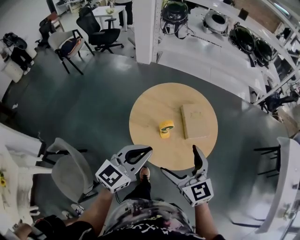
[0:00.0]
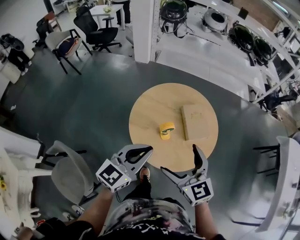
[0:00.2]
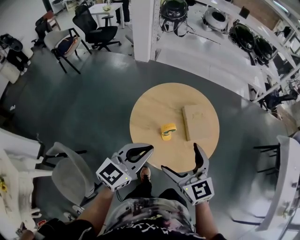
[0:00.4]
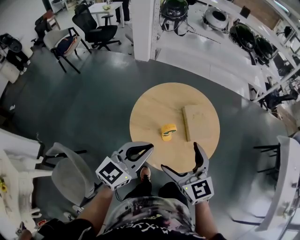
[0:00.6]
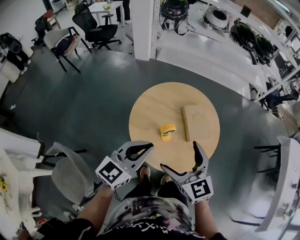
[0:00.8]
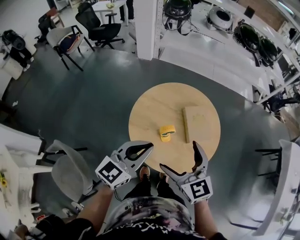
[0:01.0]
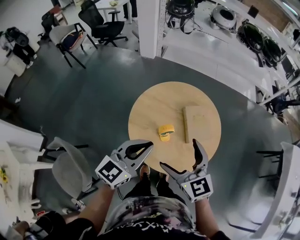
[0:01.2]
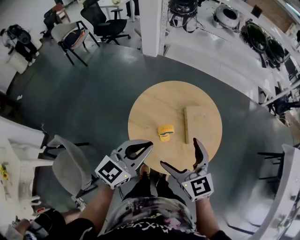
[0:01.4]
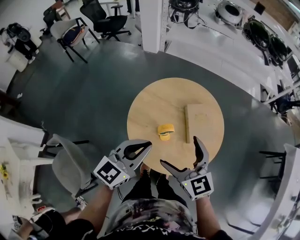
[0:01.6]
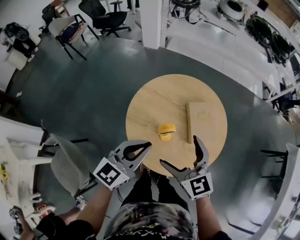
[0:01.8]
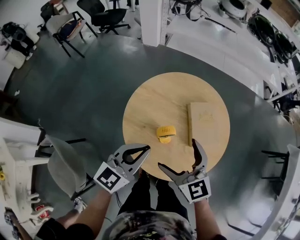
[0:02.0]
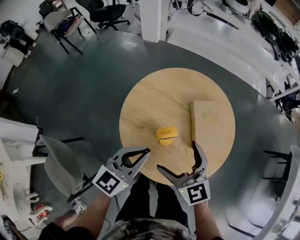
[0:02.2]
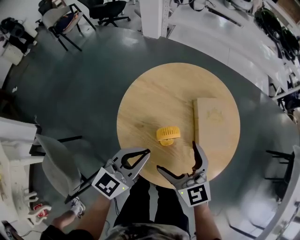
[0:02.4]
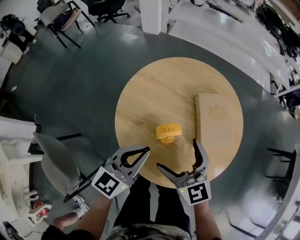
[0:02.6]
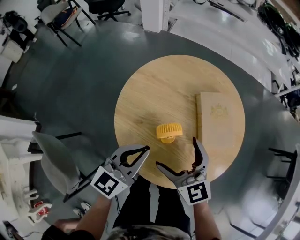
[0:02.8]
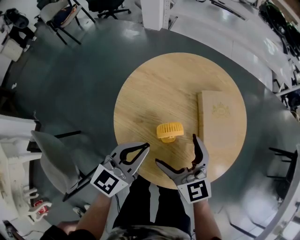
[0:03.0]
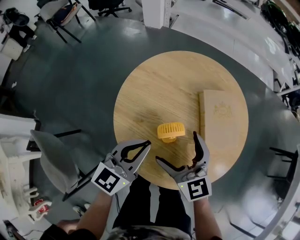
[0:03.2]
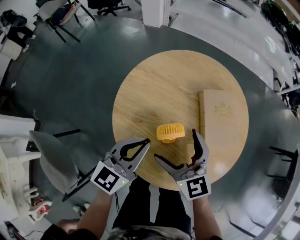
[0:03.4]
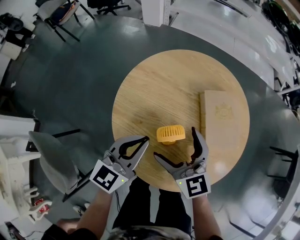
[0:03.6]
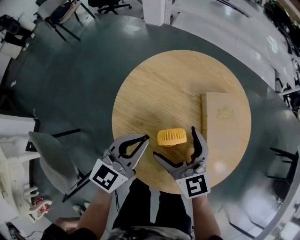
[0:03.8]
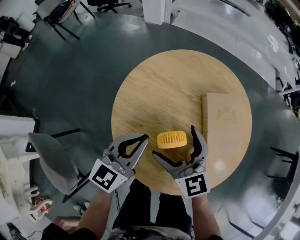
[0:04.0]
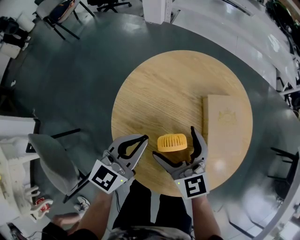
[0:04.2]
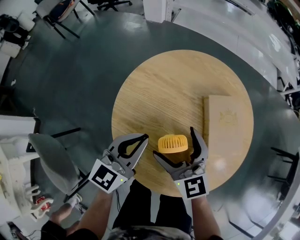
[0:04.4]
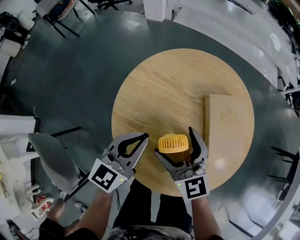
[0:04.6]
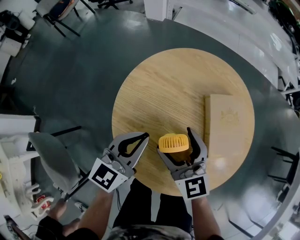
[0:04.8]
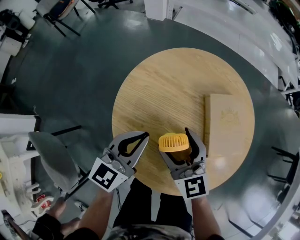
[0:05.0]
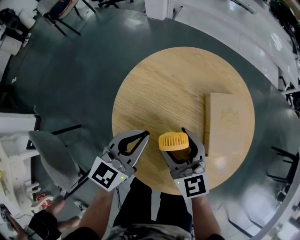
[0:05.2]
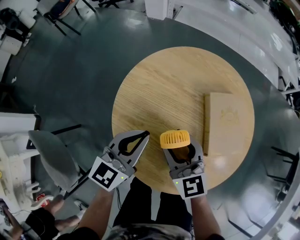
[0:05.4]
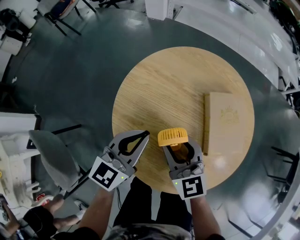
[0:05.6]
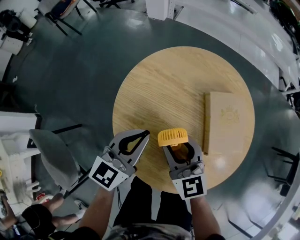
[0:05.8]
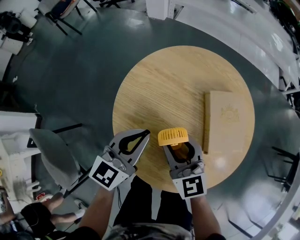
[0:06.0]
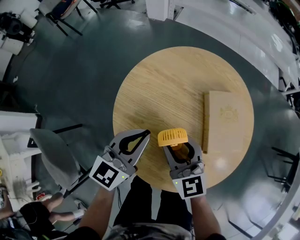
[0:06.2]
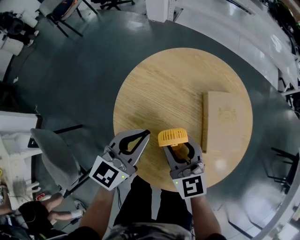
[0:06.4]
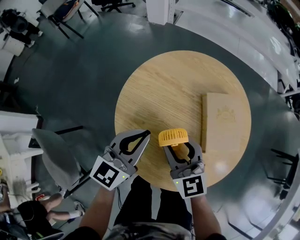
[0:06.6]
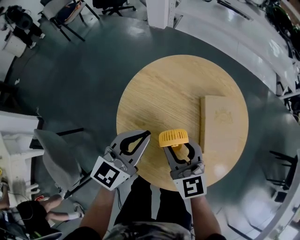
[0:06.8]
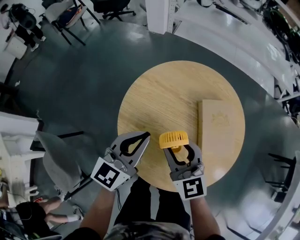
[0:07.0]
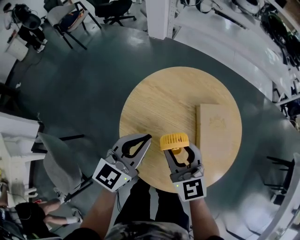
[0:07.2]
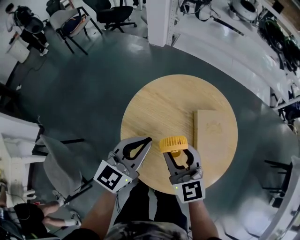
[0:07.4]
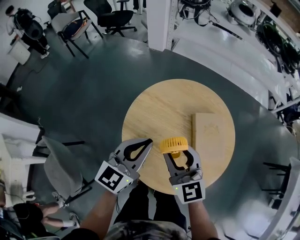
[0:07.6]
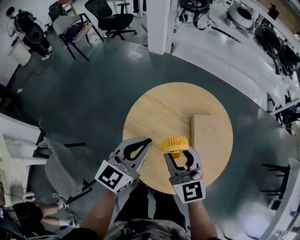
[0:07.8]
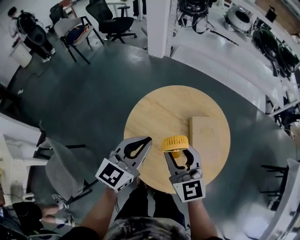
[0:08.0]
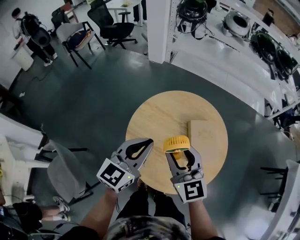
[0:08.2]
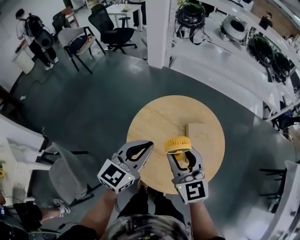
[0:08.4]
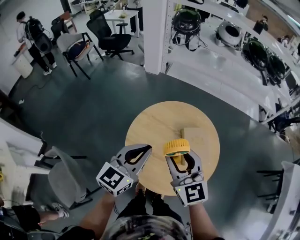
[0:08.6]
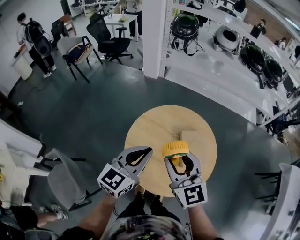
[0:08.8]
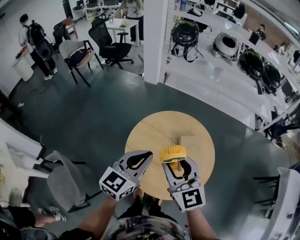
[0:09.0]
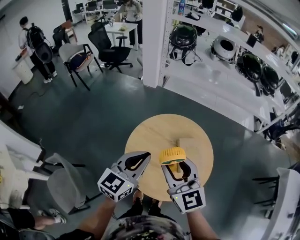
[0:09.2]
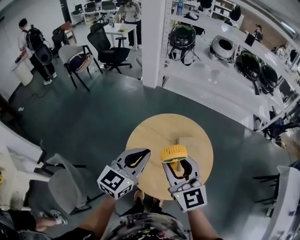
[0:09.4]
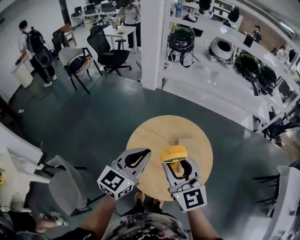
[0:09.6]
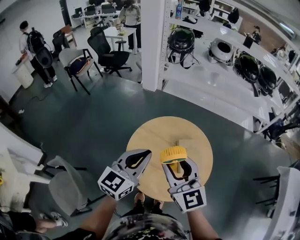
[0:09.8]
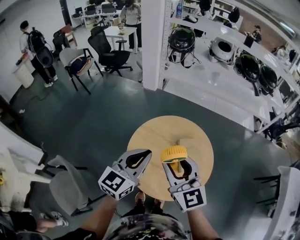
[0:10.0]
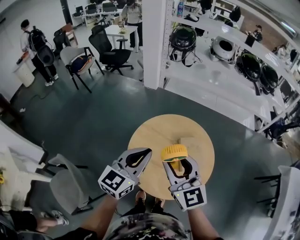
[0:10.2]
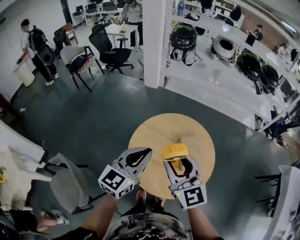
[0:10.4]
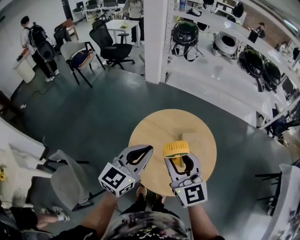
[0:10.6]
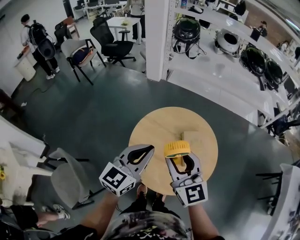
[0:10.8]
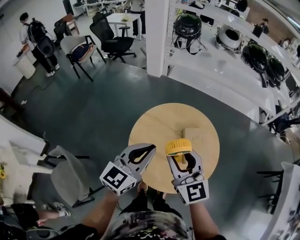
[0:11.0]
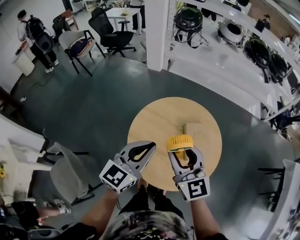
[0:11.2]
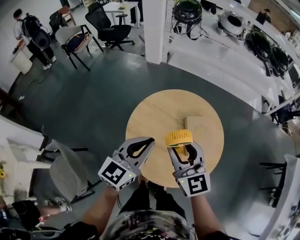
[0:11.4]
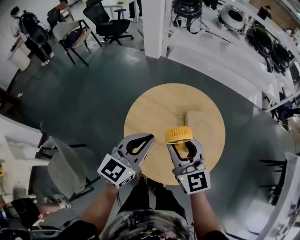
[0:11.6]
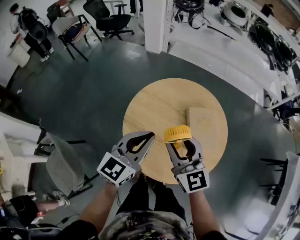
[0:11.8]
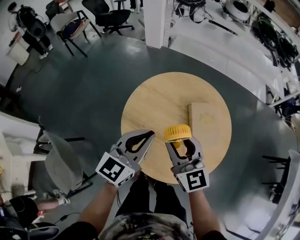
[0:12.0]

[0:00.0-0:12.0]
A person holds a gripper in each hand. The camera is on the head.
0:00.0 to 0:01.6: Both grippers travel together forward, some 10 cm.
0:01.6 to 0:03.0: The grippers both shift downward by roughly 20 cm.
0:03.0 to 0:04.4: The grippers both shift forward by about 5 cm.
0:04.4 to 0:06.0: The right gripper closes up.
0:06.0 to 0:07.6: Both grippers travel together upward, roughly 15 cm.
0:07.6 to 0:09.0: The two grippers go roughly 15 cm upward.
0:09.0 to 0:10.4: The grippers move only a little.
0:10.4 to 0:12.0: Both grippers move downward, about 15 cm.

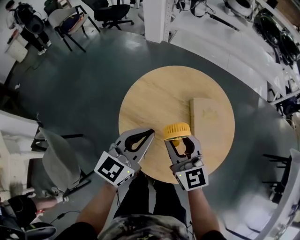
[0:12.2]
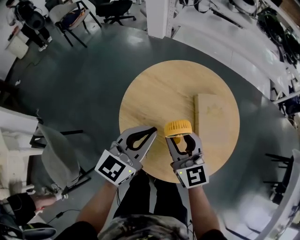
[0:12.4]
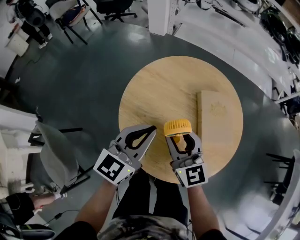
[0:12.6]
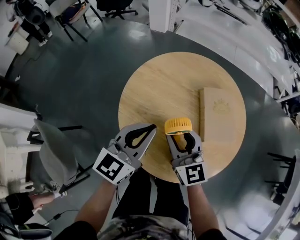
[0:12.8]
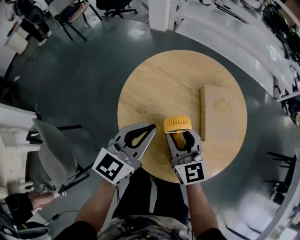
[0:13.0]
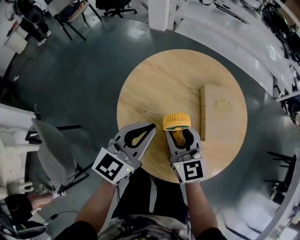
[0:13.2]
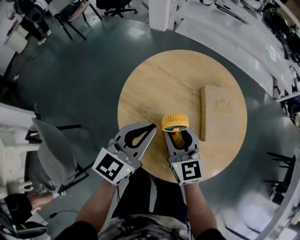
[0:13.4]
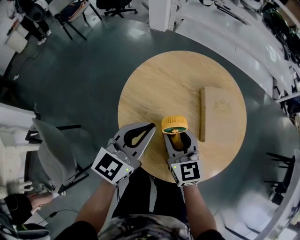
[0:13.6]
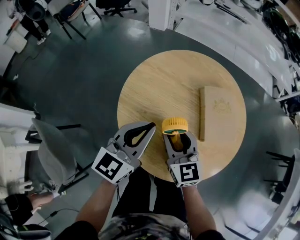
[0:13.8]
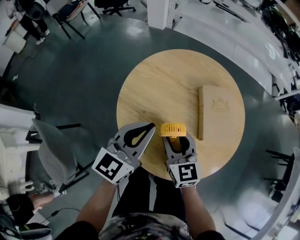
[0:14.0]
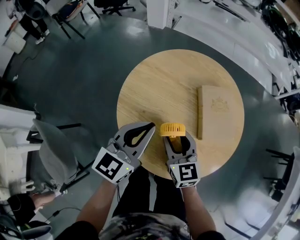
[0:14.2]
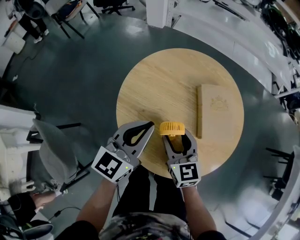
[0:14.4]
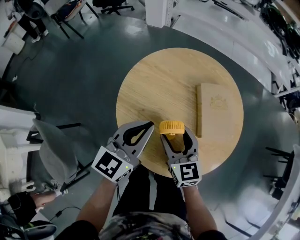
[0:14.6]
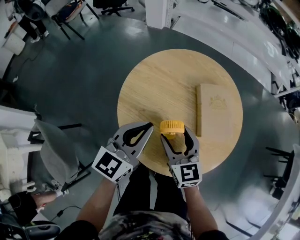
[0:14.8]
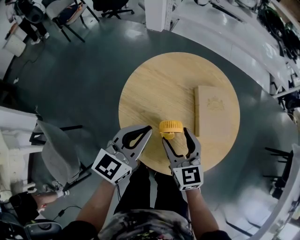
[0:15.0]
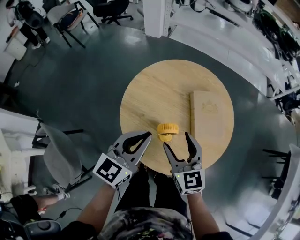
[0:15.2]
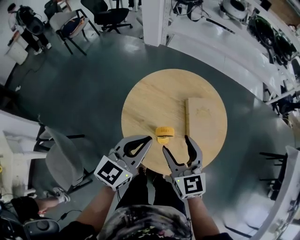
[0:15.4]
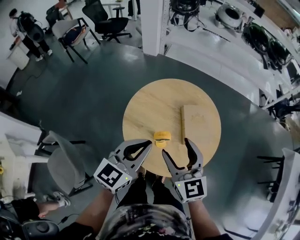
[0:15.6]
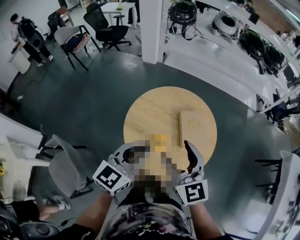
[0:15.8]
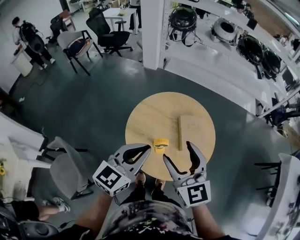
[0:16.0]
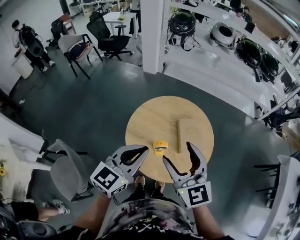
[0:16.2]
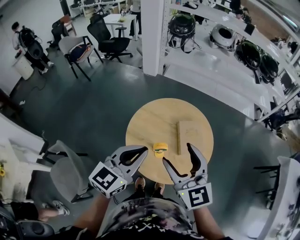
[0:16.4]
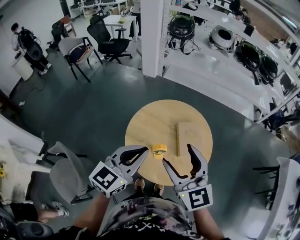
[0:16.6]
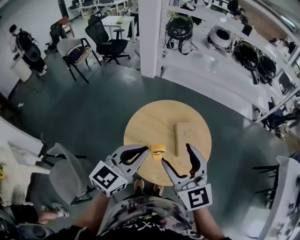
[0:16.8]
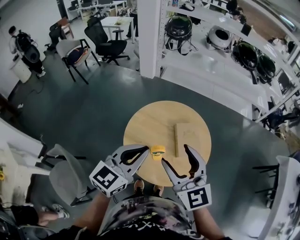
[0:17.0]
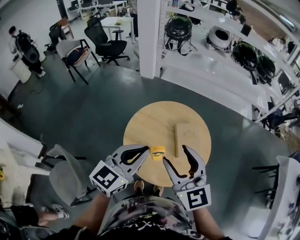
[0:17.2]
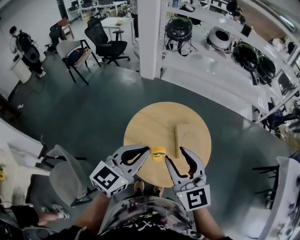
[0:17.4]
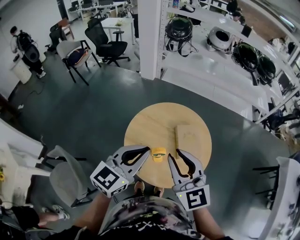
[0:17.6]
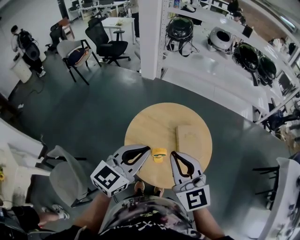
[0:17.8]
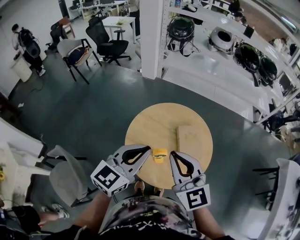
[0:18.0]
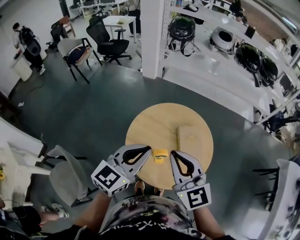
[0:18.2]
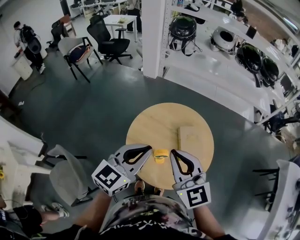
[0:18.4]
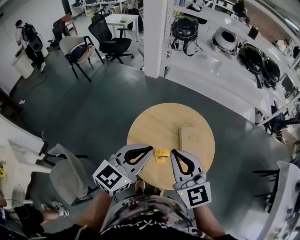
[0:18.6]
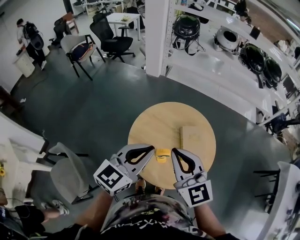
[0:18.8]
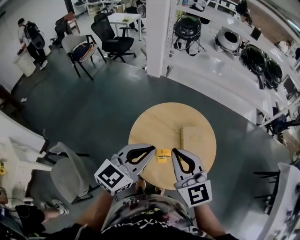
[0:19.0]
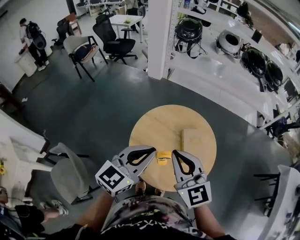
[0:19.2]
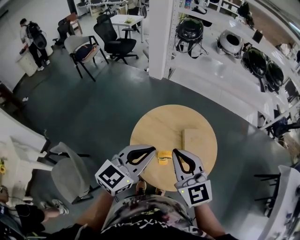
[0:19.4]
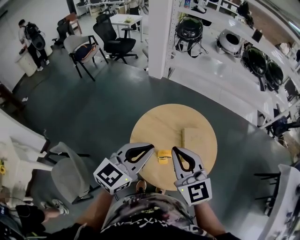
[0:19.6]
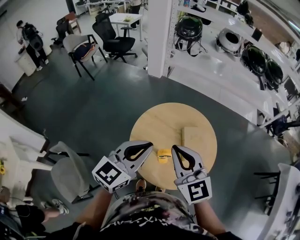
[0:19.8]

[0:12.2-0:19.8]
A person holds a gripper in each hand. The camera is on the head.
0:12.2 to 0:13.8: The left gripper moves downward, about 5 cm; the right gripper is displaced downward by some 10 cm.
0:13.8 to 0:15.2: Both grippers travel together upward, approximately 5 cm.
0:15.2 to 0:16.8: Both grippers travel together upward, some 25 cm.
0:16.8 to 0:18.2: The right gripper closes its fingers.
0:18.2 to 0:19.8: There are only small adjustments of the grippers.

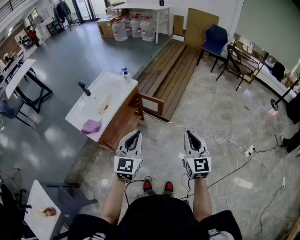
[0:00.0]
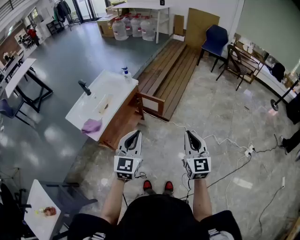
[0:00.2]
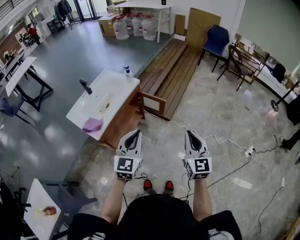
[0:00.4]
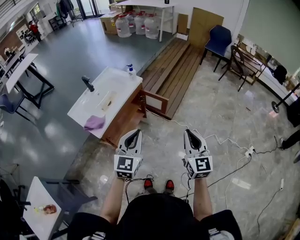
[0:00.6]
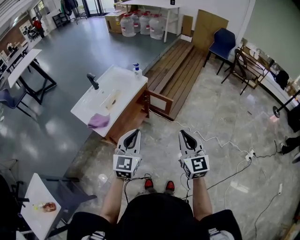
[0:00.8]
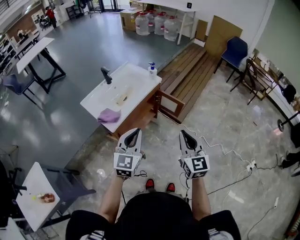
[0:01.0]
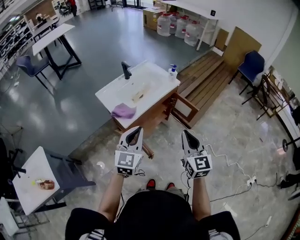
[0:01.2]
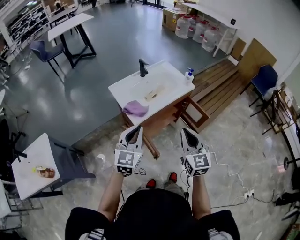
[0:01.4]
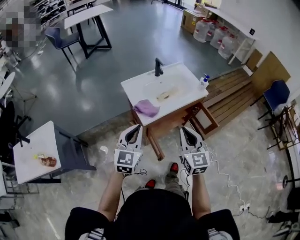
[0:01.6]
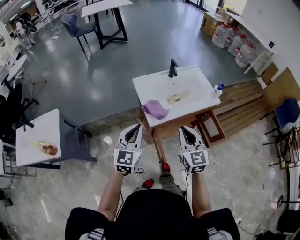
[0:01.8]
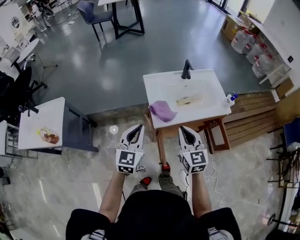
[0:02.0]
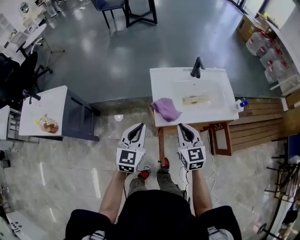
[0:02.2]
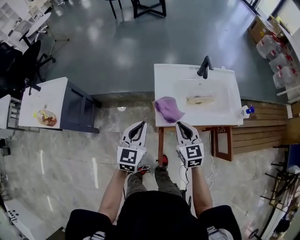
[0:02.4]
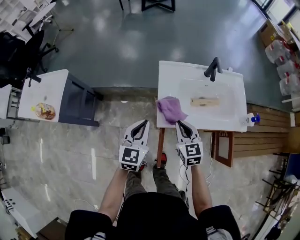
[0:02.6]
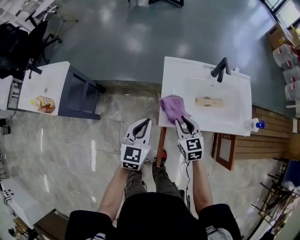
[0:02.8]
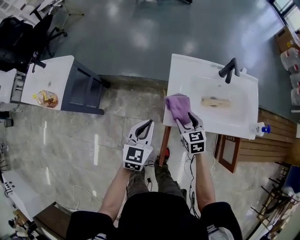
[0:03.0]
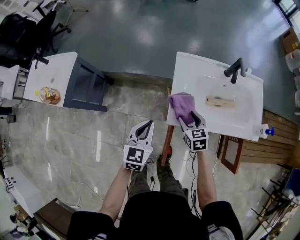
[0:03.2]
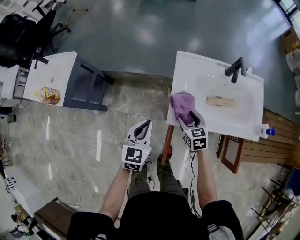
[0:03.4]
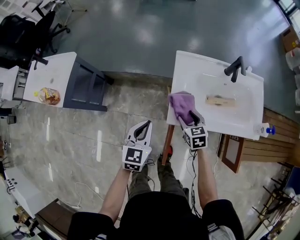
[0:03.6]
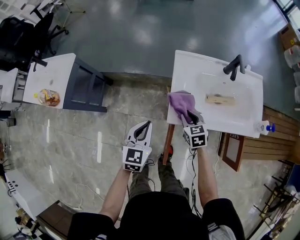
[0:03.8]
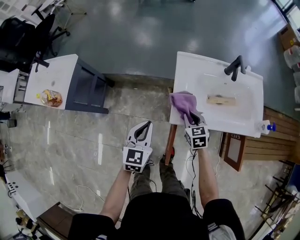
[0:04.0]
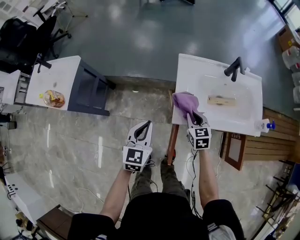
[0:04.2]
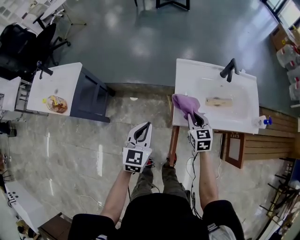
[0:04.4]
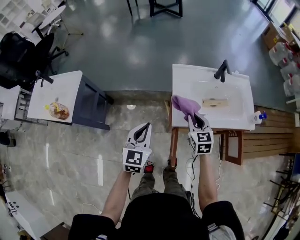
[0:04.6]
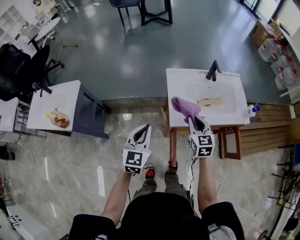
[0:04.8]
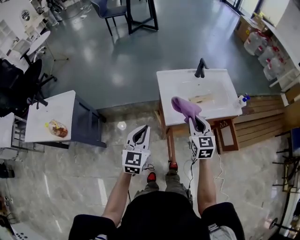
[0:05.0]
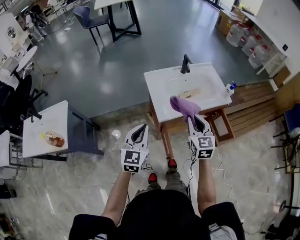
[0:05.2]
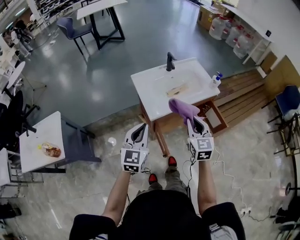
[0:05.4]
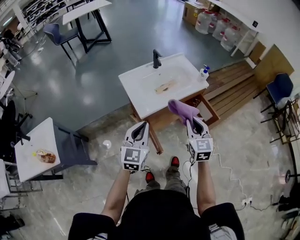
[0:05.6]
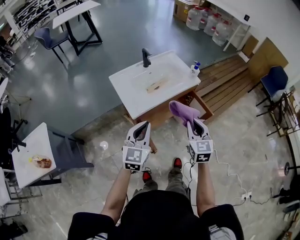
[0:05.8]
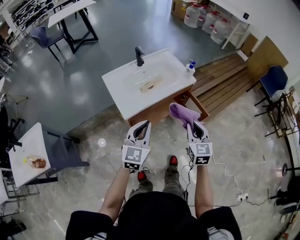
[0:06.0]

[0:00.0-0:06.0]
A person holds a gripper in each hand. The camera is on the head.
0:00.0 to 0:01.6: The left gripper changes place by about 30 cm, and rotates some 30 degrees. Meanwhile the right gripper changes place by about 35 cm, and swivels some 40 degrees.
0:01.6 to 0:03.0: The right gripper is displaced downward by approximately 25 cm, swivels approximately 50 degrees, and opens up. Meanwhile the left gripper is displaced downward by about 15 cm, and changes its angle by roughly 40 degrees.
0:03.0 to 0:04.4: The left gripper heads to the left, covering approximately 5 cm; the right gripper closes.
0:04.4 to 0:06.0: The left gripper ends up approximately 25 cm from where it was, and turns by approximately 40 degrees; the right gripper changes place by some 40 cm, and swivels about 40 degrees.
